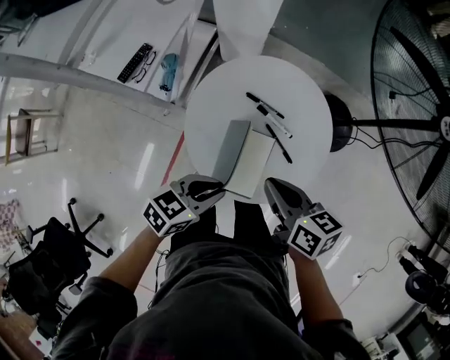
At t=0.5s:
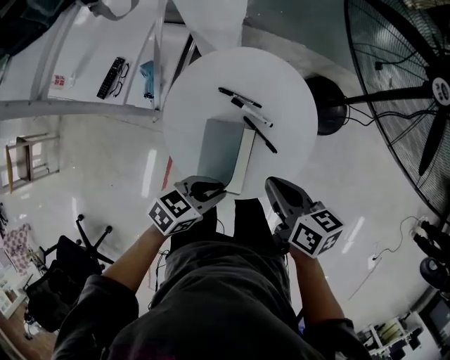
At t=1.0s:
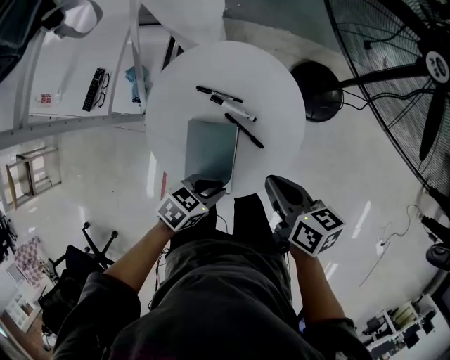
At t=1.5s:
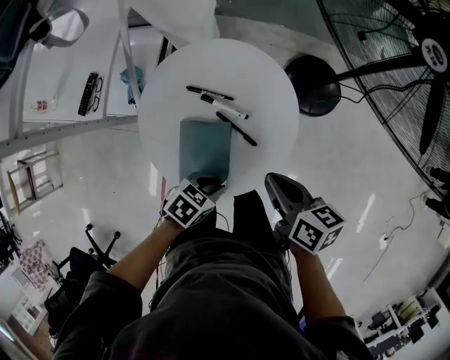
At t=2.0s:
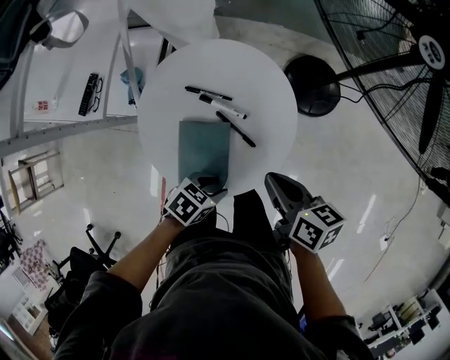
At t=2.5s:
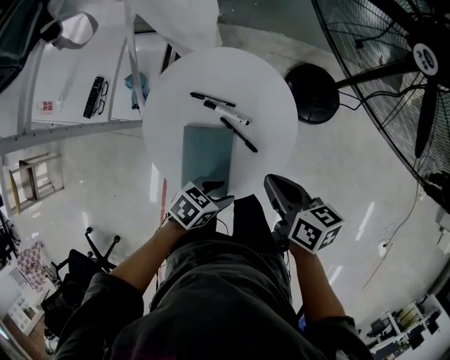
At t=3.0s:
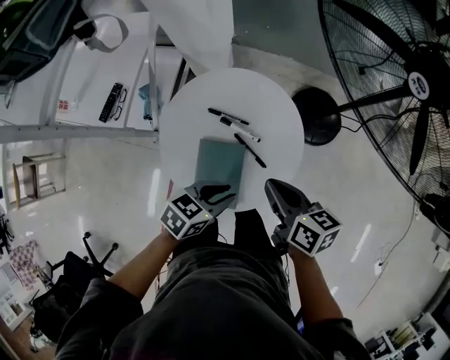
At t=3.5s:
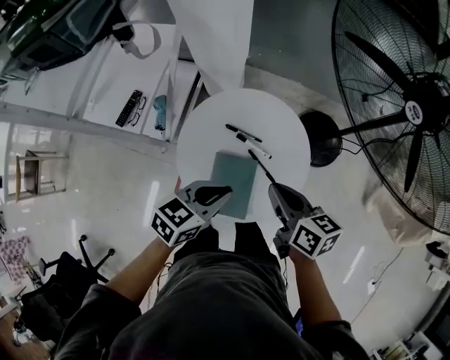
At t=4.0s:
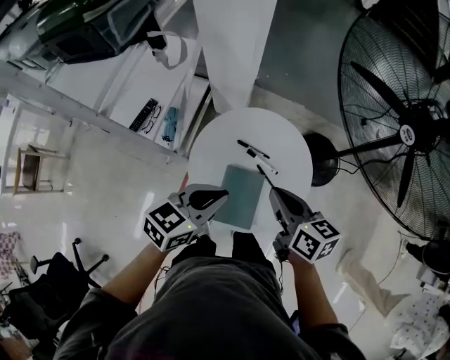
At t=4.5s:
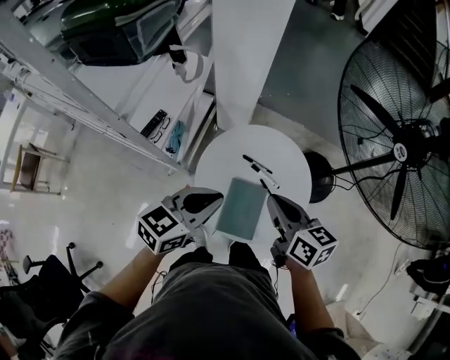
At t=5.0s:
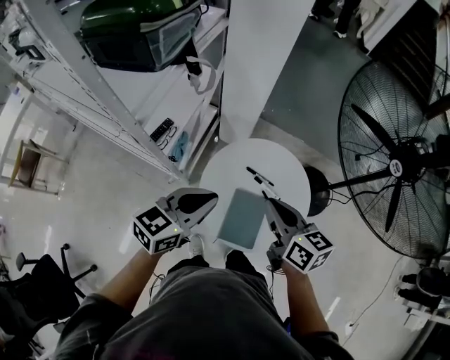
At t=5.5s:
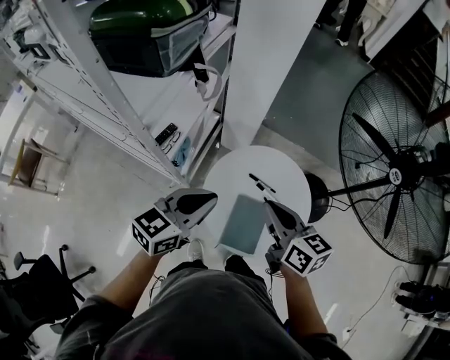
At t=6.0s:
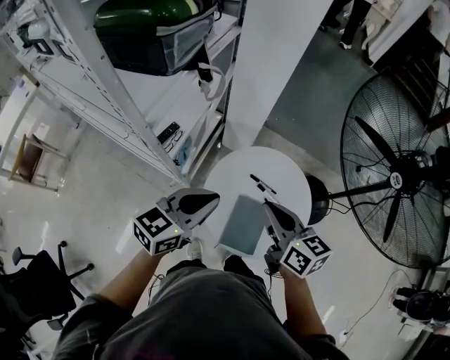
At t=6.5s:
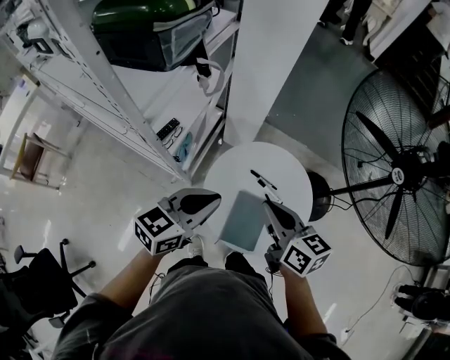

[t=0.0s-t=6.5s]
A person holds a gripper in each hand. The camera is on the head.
t=0.0s to t=2.0s: The right gripper shifts by roughly 15 cm. The left gripper changes place by approximately 15 cm, turns by roughly 30 degrees, and opens its fingers.
t=2.0s to t=4.5s: The right gripper ends up some 25 cm from where it was, and turns by approximately 20 degrees, while the left gripper shifts roughly 30 cm upward, angles its fingers upward, by approximately 30 degrees, and closes.
t=4.5s to t=6.5s: Both grippers move to the left, approximately 5 cm.

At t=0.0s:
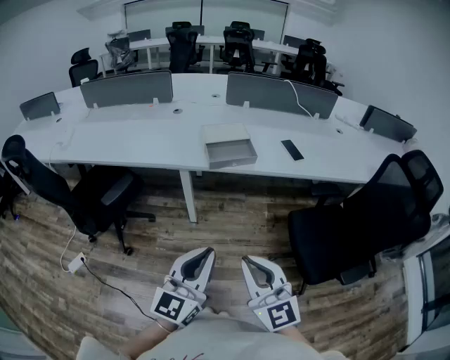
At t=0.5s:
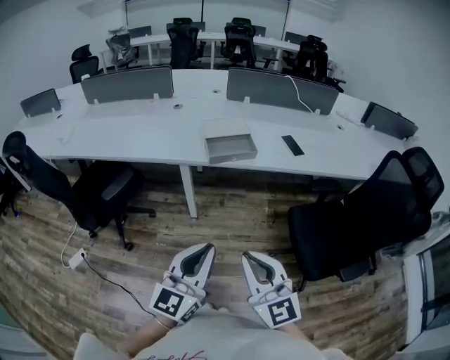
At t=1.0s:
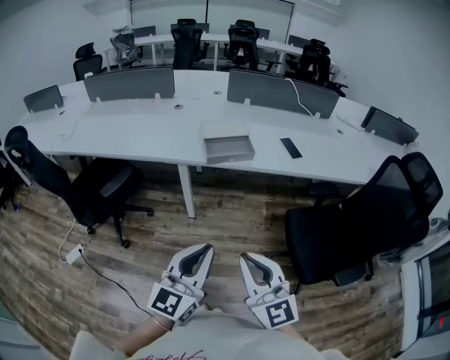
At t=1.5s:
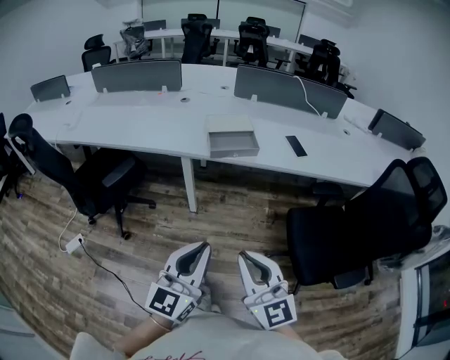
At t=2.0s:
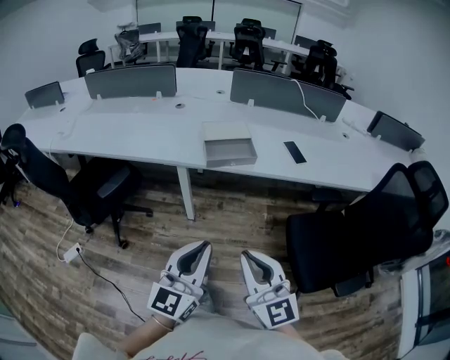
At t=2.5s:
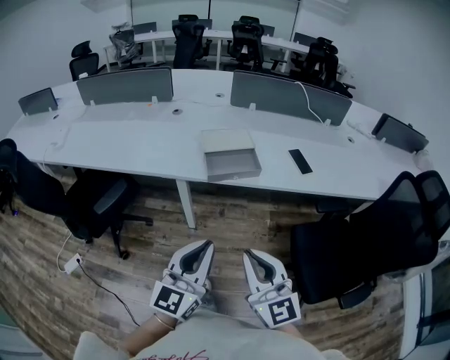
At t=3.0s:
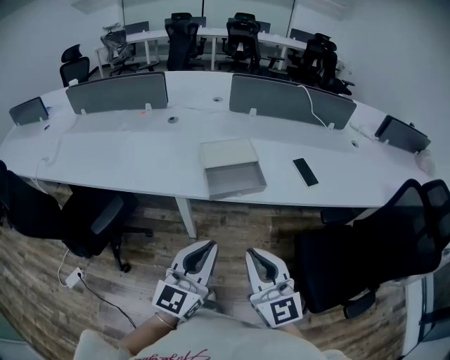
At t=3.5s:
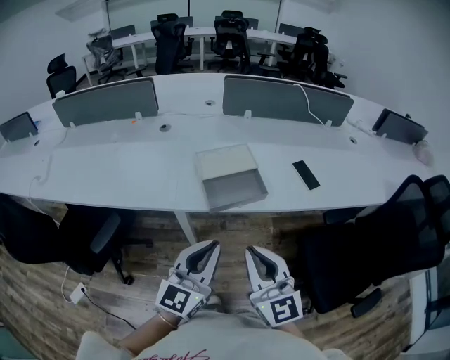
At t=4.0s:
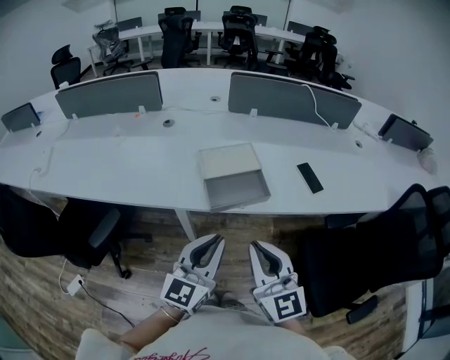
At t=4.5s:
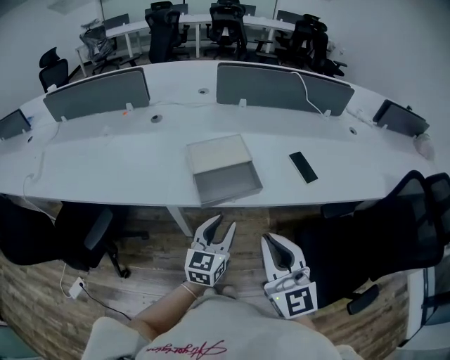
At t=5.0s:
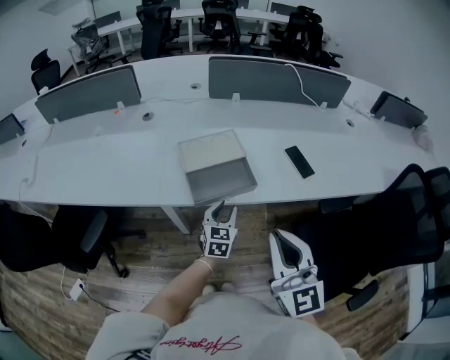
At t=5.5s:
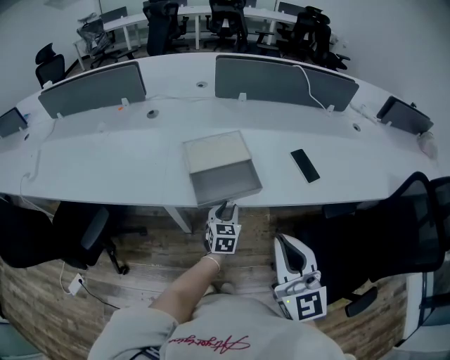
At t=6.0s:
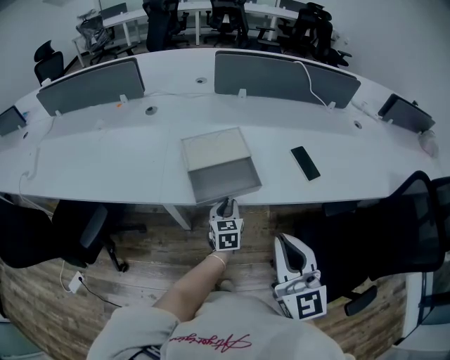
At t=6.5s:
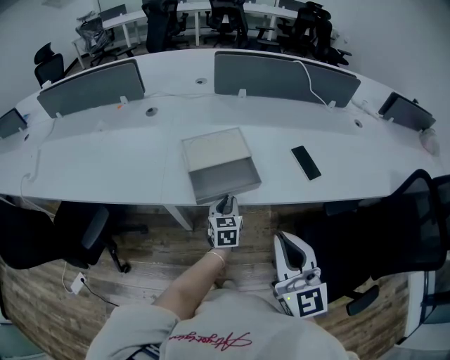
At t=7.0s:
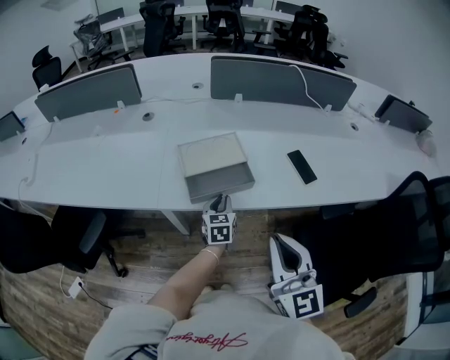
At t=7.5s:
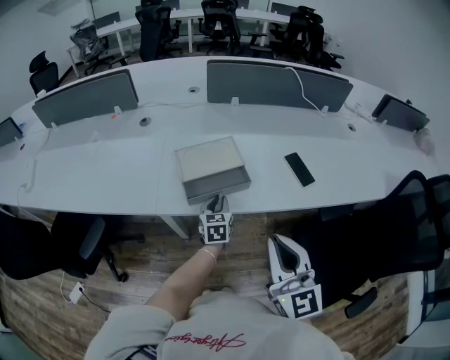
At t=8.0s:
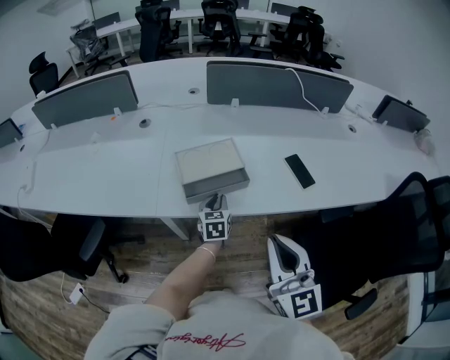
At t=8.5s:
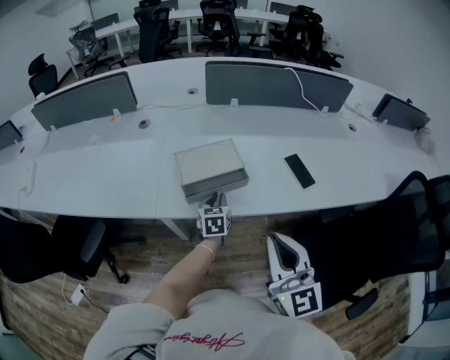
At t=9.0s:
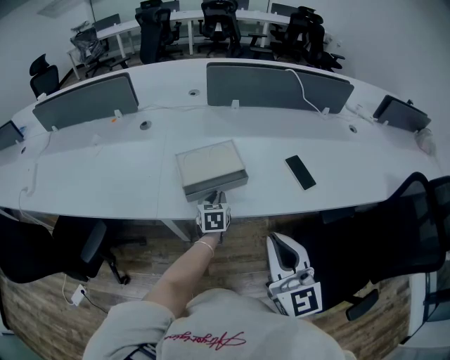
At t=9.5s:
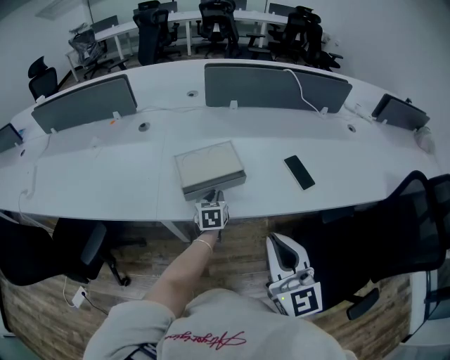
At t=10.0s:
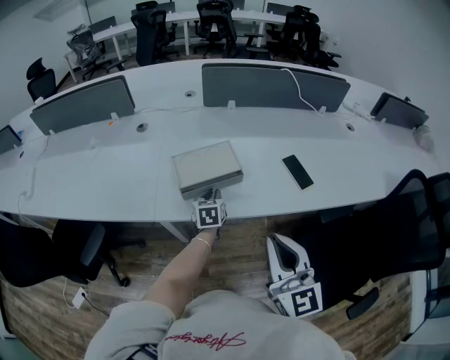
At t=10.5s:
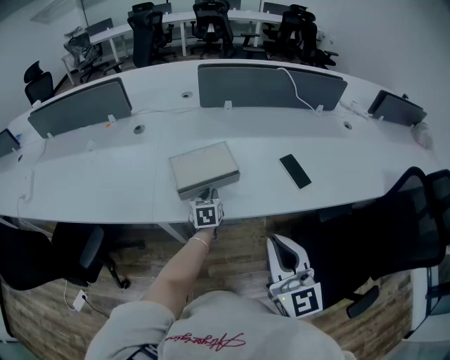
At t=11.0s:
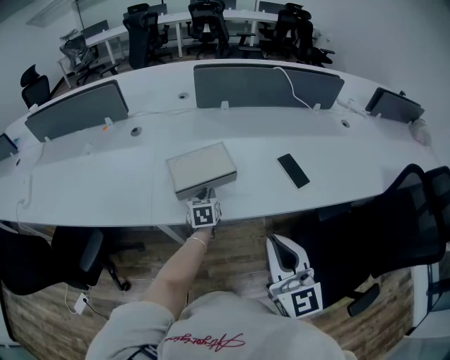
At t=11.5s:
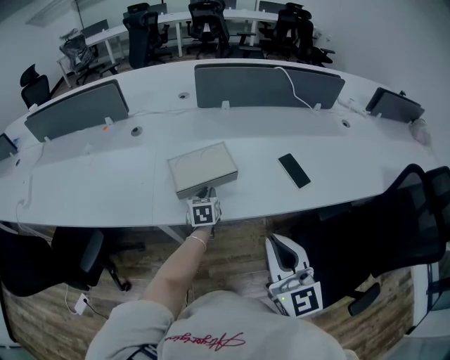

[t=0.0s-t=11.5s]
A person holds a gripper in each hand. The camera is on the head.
t=0.0s to t=2.0s: The grippers make only small movements.
t=2.0s to t=4.0s: Both grippers travel together forward, roughly 25 cm.
t=4.0s to t=6.0s: The left gripper moves downward and forward, roughly 30 cm, and changes its angle by about 30 degrees; the right gripper moves to the right, some 10 cm.
t=6.0s to t=7.5s: The grippers move only a little.
t=7.5s to t=9.5s: The grippers move only a little.
t=9.5s to t=11.5s: The grippers make only small movements.

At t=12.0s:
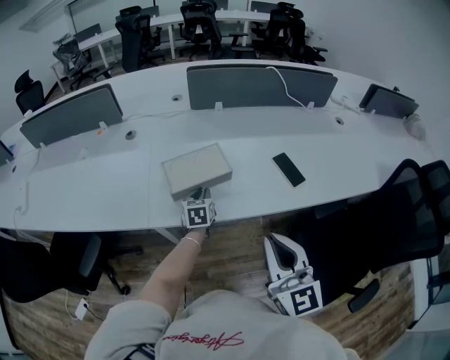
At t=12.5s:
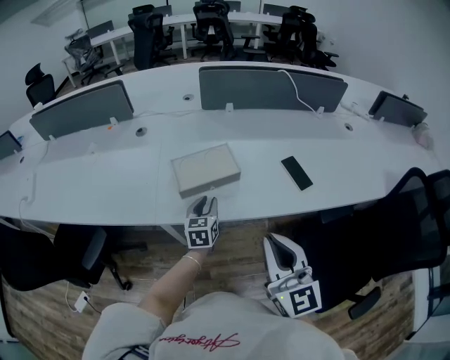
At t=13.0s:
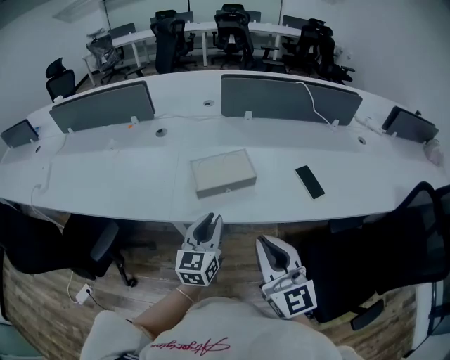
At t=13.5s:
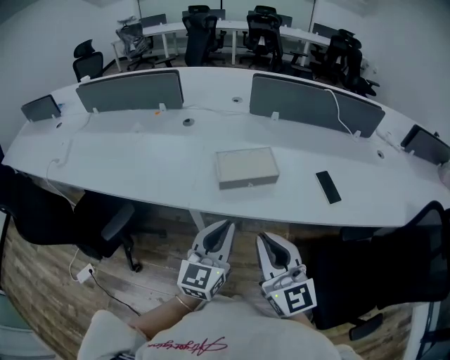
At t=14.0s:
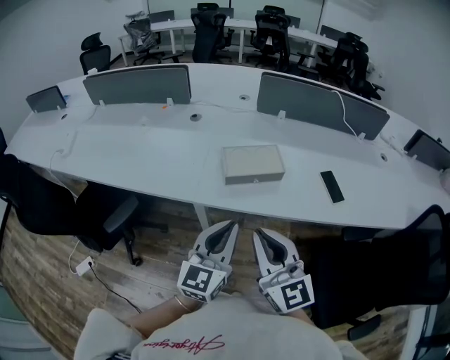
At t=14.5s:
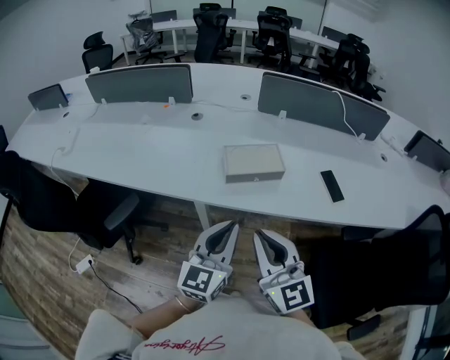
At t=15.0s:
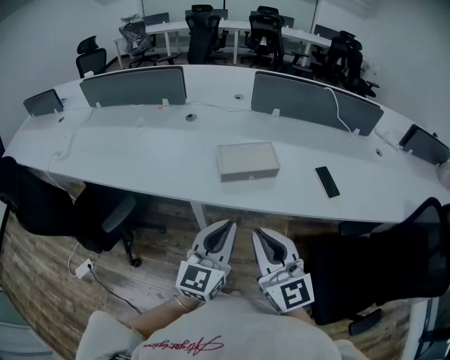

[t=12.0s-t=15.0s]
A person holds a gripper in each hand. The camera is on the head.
t=12.0s to t=13.5s: The left gripper shifts approximately 30 cm backward and upward, and tips its fingers upward by about 30 degrees. Meanwhile the right gripper travels to the left by some 10 cm.
t=13.5s to t=15.0s: The grippers move only a little.

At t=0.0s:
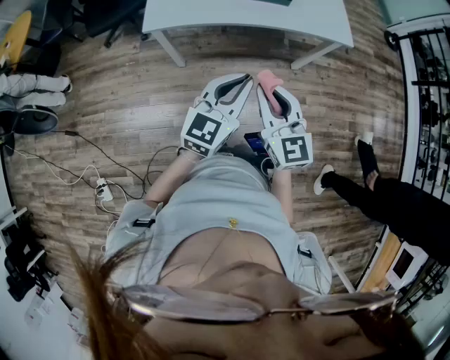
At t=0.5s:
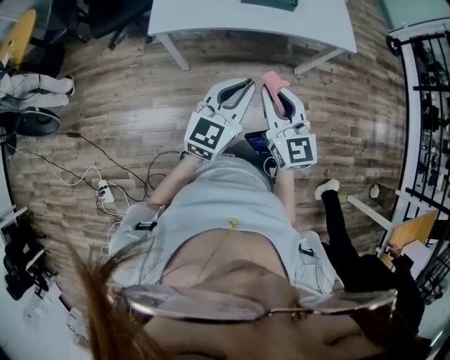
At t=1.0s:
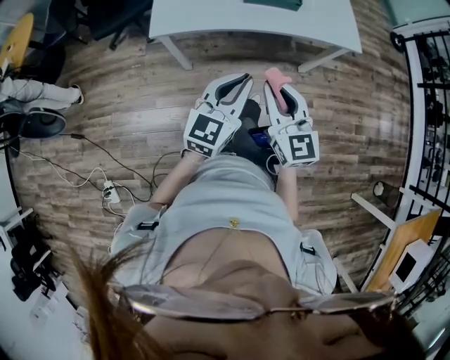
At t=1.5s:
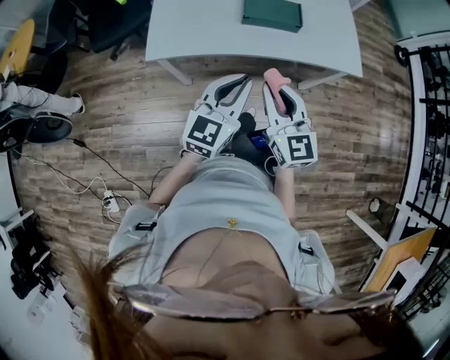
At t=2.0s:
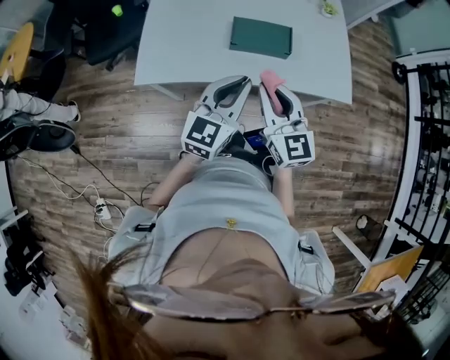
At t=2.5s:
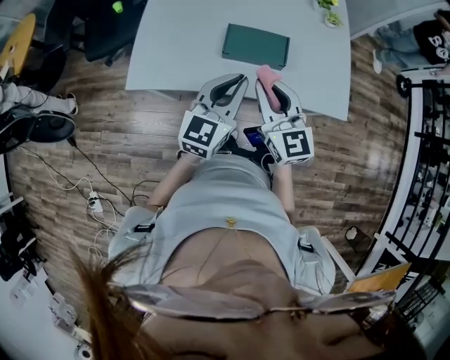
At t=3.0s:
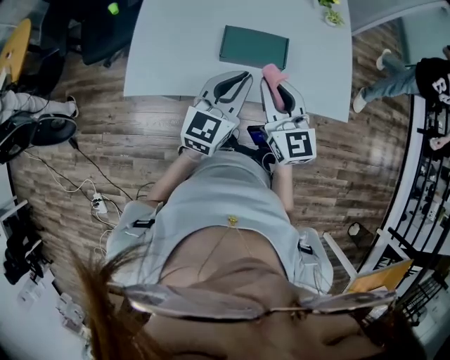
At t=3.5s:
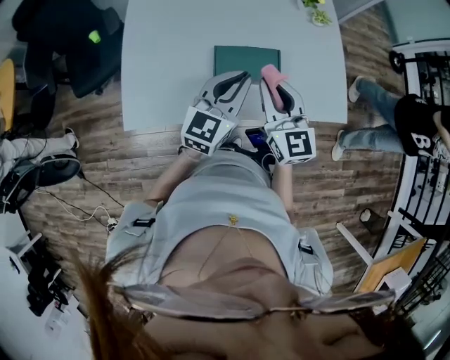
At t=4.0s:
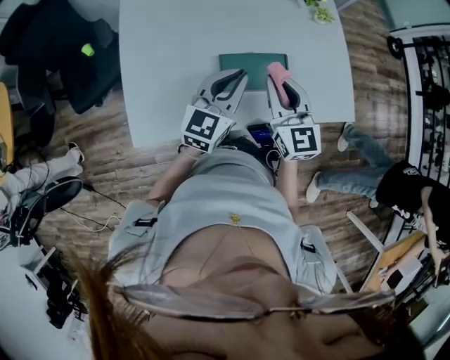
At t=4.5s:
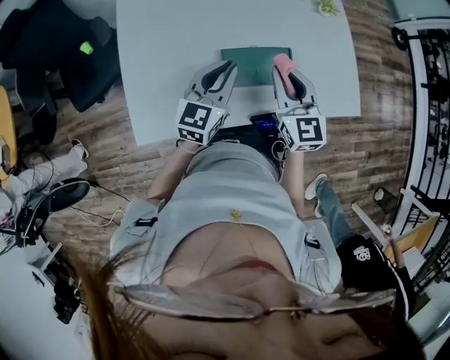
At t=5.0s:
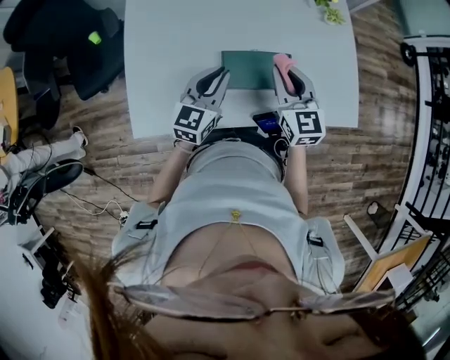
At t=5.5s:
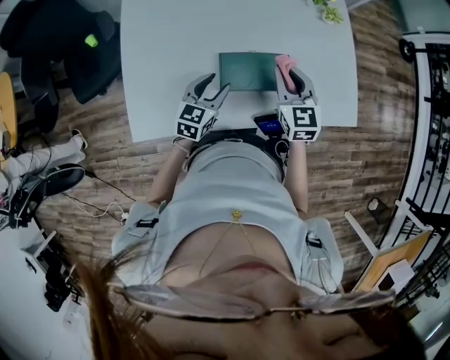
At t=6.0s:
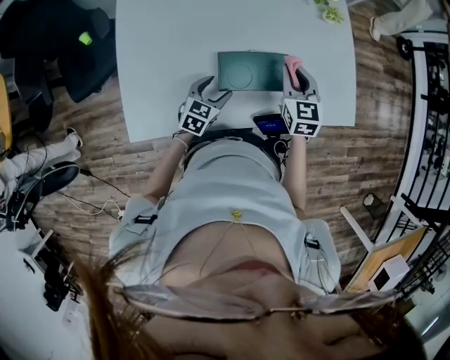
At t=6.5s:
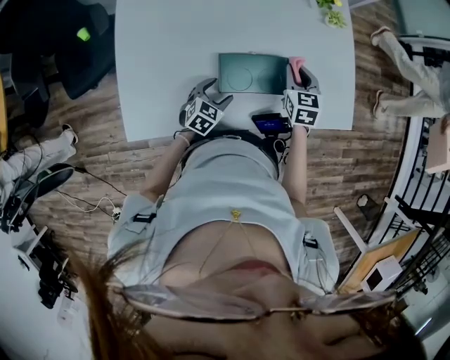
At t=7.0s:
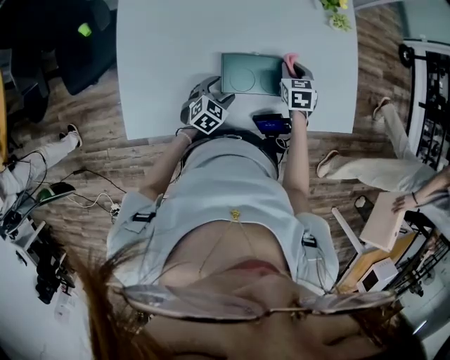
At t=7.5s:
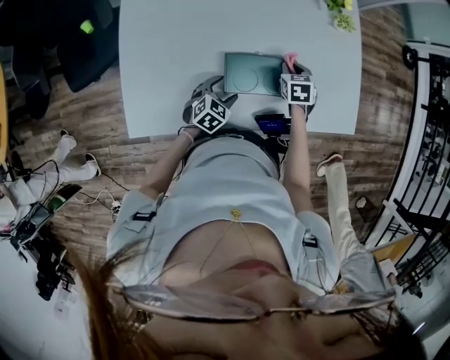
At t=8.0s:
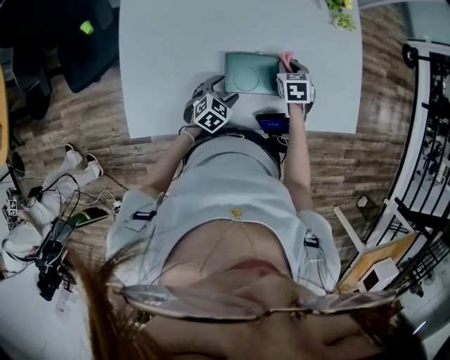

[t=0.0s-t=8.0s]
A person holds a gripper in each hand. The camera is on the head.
t=0.0s to t=2.0s: Both grippers move forward, about 25 cm.
t=2.0s to t=4.0s: Both grippers travel together forward, approximately 25 cm.
t=4.0s to t=6.0s: The left gripper moves downward, approximately 20 cm, changes its angle by approximately 30 degrees, and opens; the right gripper is displaced downward, forward and to the right by about 15 cm.
t=6.0s to t=8.0s: The right gripper is displaced downward by some 15 cm, and changes its angle by approximately 30 degrees.
